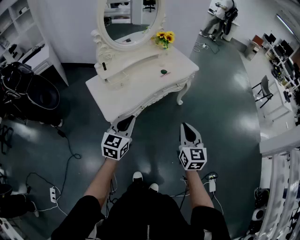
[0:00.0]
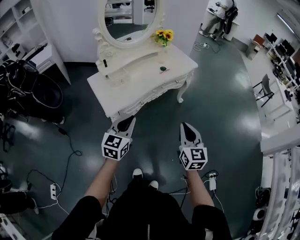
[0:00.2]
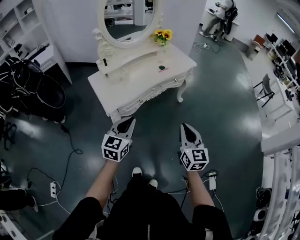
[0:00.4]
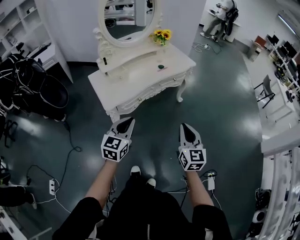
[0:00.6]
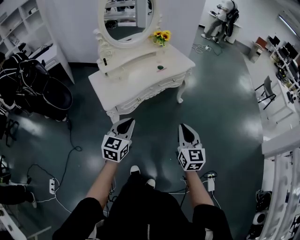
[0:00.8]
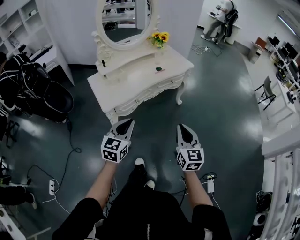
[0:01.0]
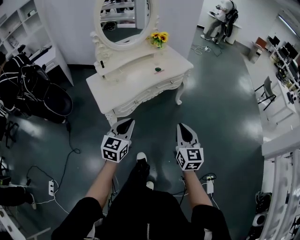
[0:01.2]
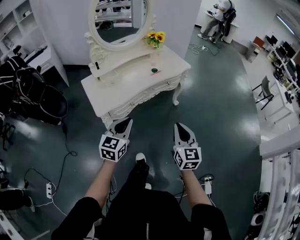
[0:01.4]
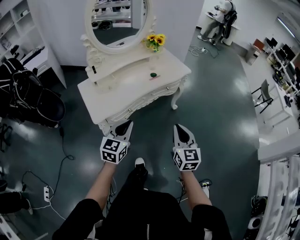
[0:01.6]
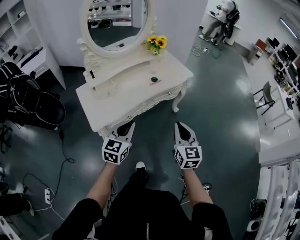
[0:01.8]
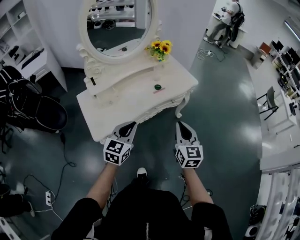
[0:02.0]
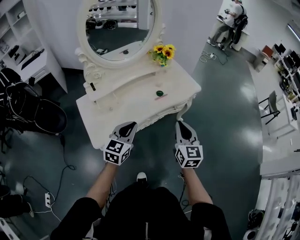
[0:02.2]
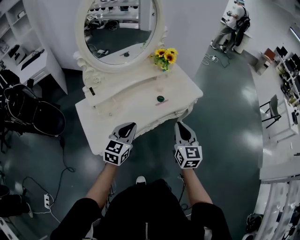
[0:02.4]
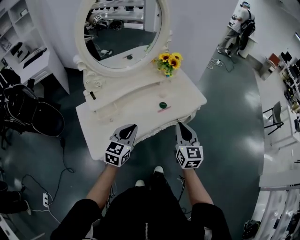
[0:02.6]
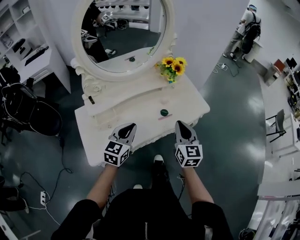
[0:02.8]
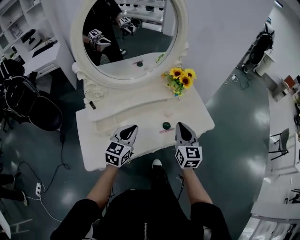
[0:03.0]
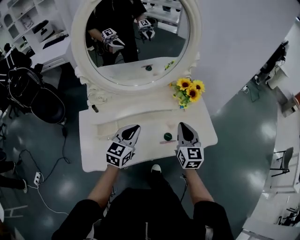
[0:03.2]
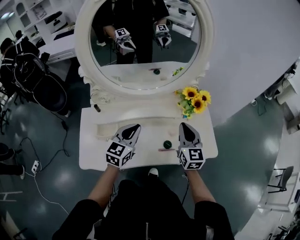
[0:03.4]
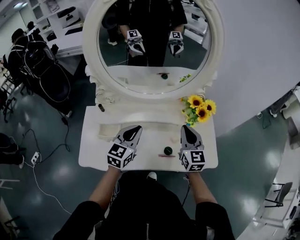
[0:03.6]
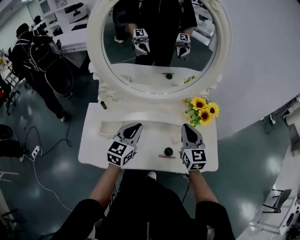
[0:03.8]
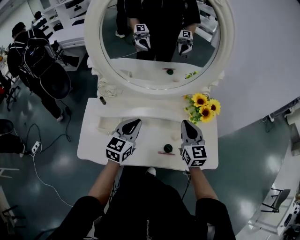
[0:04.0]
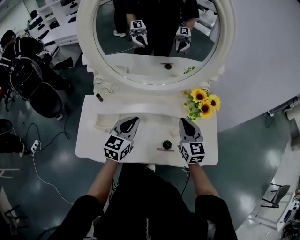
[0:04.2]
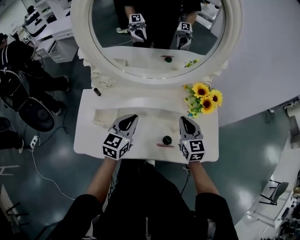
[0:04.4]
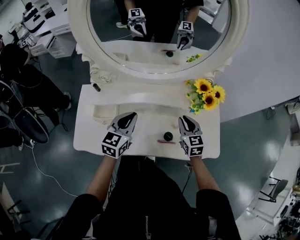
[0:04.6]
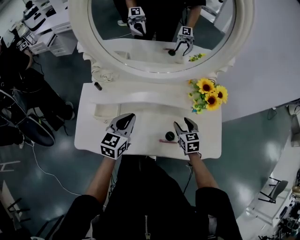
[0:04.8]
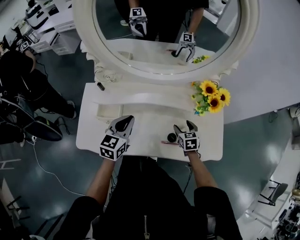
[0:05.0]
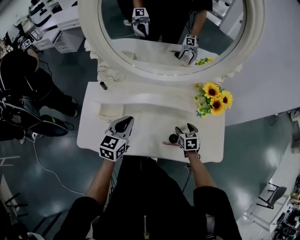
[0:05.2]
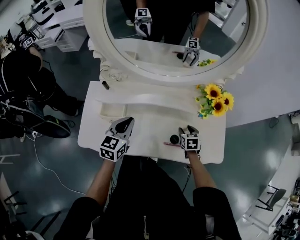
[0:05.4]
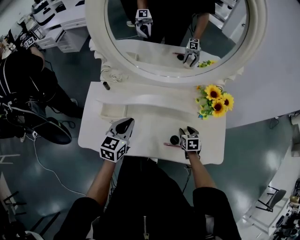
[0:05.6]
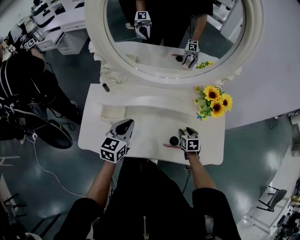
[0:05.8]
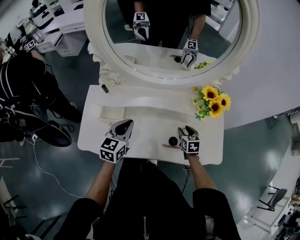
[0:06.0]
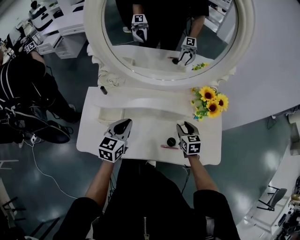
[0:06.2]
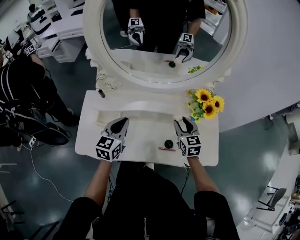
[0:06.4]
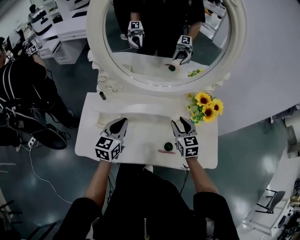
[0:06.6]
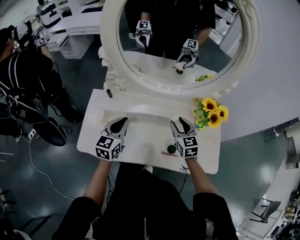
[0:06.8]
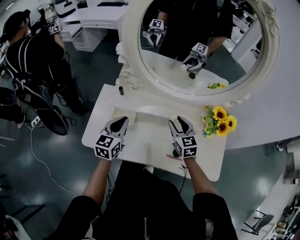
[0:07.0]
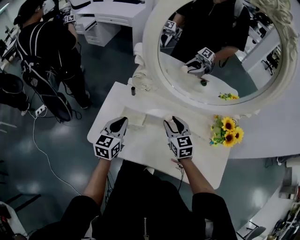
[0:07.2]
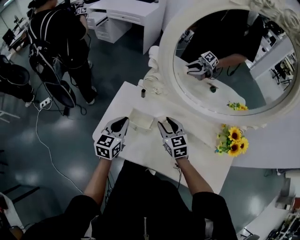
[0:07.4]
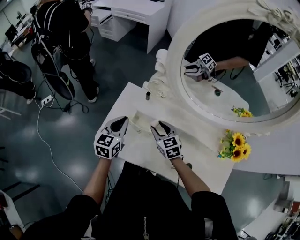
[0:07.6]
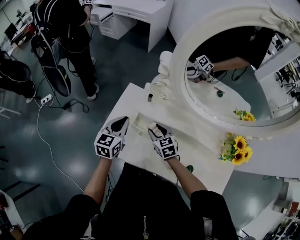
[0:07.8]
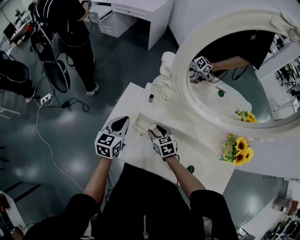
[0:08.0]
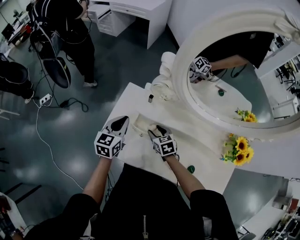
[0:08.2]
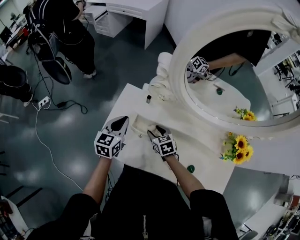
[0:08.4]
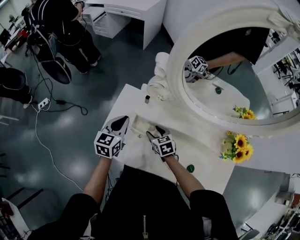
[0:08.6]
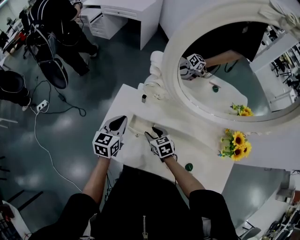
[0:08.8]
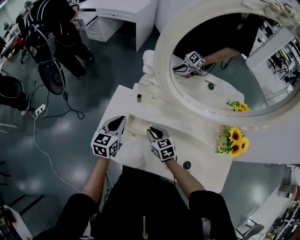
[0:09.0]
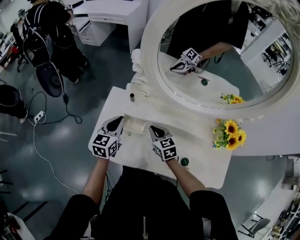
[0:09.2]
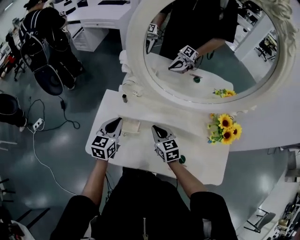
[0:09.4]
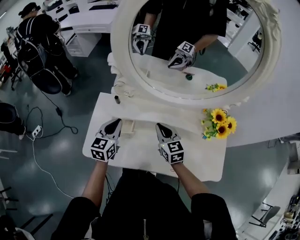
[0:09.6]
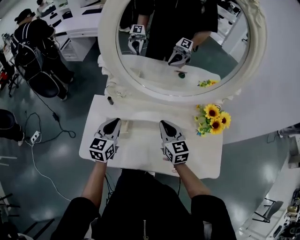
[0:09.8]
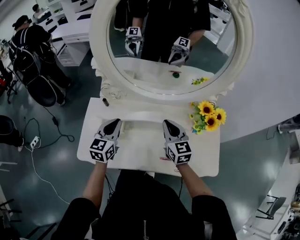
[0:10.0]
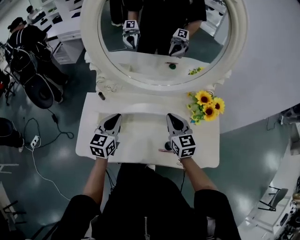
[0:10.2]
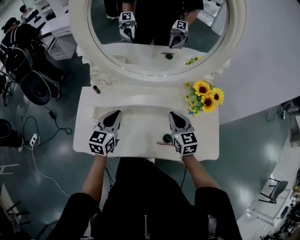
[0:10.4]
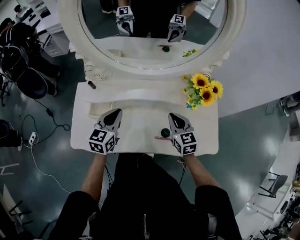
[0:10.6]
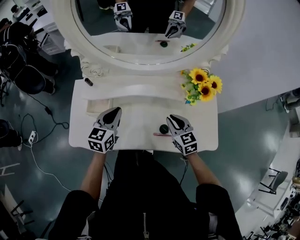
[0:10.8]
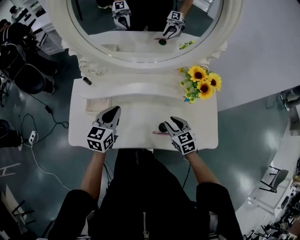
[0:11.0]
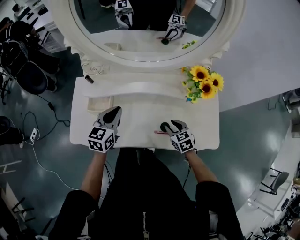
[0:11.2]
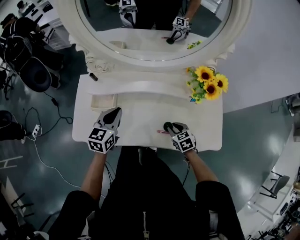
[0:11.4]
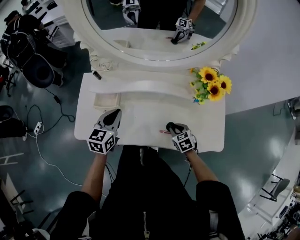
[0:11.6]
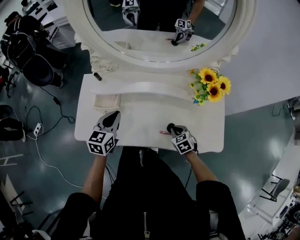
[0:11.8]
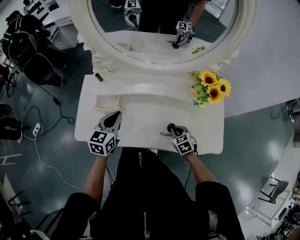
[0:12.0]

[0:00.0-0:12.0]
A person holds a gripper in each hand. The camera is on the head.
0:00.0 to 0:01.6: Both grippers travel together to the right, some 10 cm. The right gripper goes backward and returns, approximately 10 cm each way. The left gripper goes backward and returns, about 10 cm each way.
0:01.6 to 0:03.0: Both grippers are carried forward, about 40 cm.
0:03.0 to 0:04.4: The right gripper shifts by approximately 20 cm, and changes its angle by approximately 30 degrees. Meanwhile the left gripper moves some 10 cm, and swivels about 20 degrees.
0:04.4 to 0:06.0: The left gripper travels to the left by approximately 5 cm; the right gripper travels downward by approximately 20 cm, turns by some 30 degrees, and opens.
0:06.0 to 0:07.6: The right gripper ends up some 40 cm from where it was, and swivels some 40 degrees. The left gripper ends up approximately 20 cm from where it was, and changes its angle by roughly 20 degrees.
0:07.6 to 0:09.0: The right gripper closes its fingers.
0:09.0 to 0:10.4: The right gripper shifts roughly 30 cm to the right, and swivels approximately 30 degrees; the left gripper travels to the right by about 20 cm.
0:10.4 to 0:12.0: The left gripper ends up roughly 5 cm from where it was. Meanwhile the right gripper heads downward and backward, covering about 20 cm, points its fingers roughly 30 degrees further downward, and opens, then closes once more.

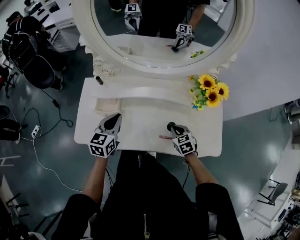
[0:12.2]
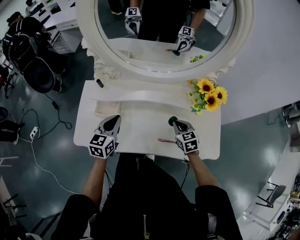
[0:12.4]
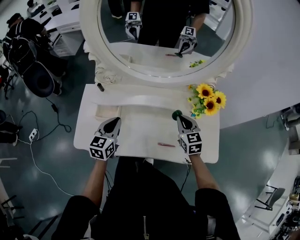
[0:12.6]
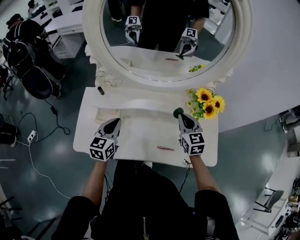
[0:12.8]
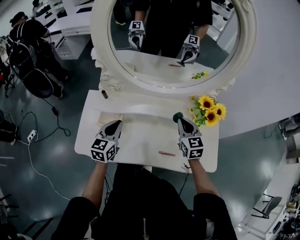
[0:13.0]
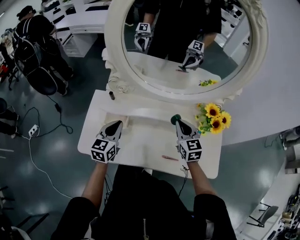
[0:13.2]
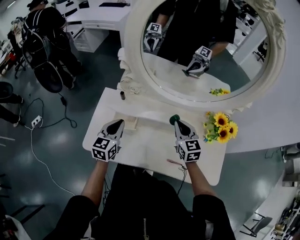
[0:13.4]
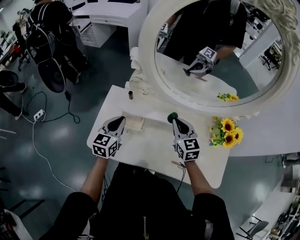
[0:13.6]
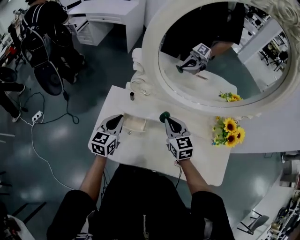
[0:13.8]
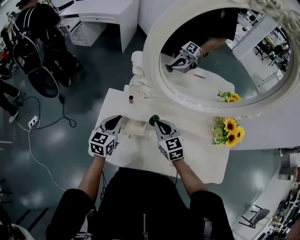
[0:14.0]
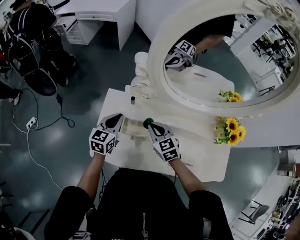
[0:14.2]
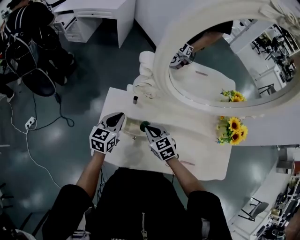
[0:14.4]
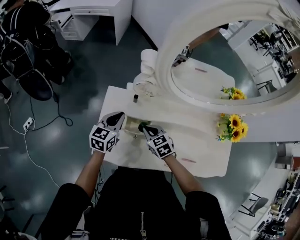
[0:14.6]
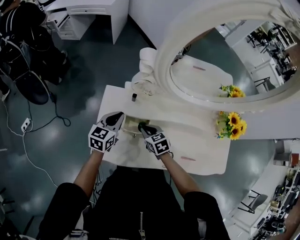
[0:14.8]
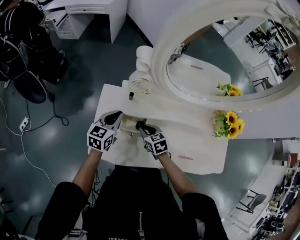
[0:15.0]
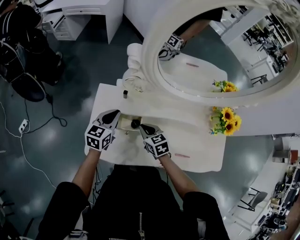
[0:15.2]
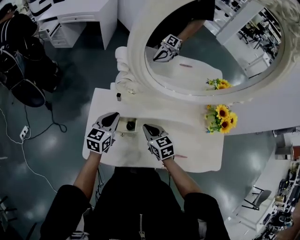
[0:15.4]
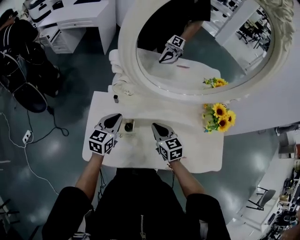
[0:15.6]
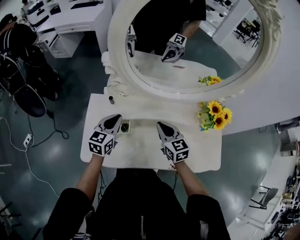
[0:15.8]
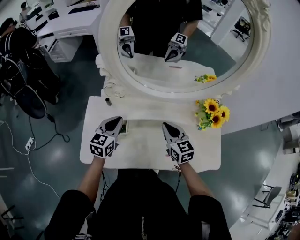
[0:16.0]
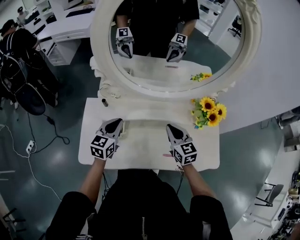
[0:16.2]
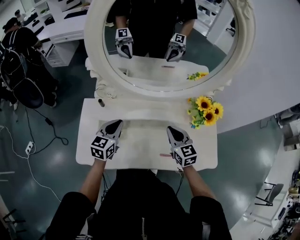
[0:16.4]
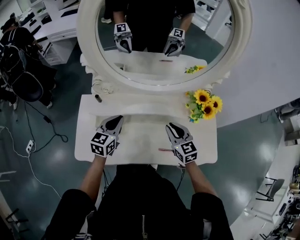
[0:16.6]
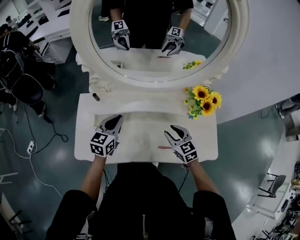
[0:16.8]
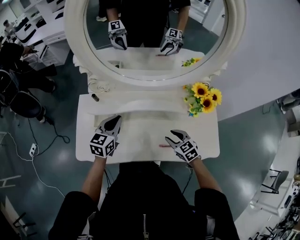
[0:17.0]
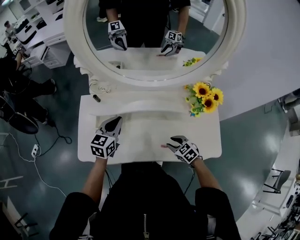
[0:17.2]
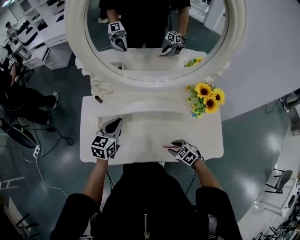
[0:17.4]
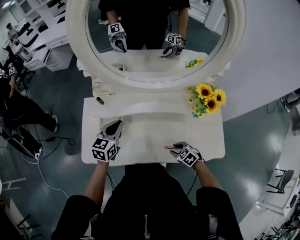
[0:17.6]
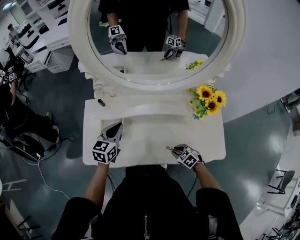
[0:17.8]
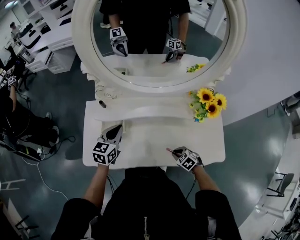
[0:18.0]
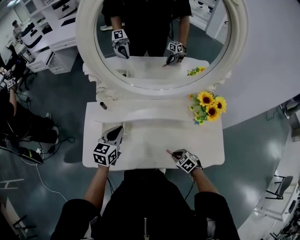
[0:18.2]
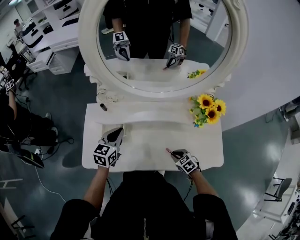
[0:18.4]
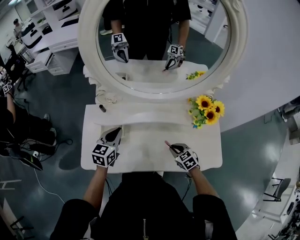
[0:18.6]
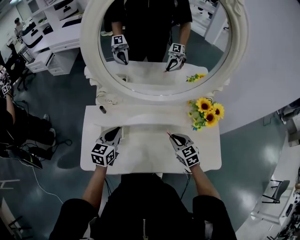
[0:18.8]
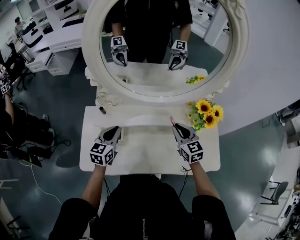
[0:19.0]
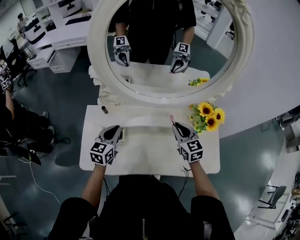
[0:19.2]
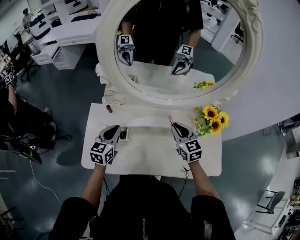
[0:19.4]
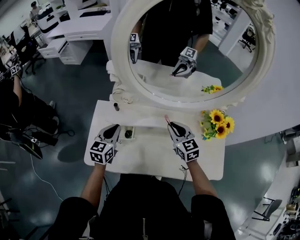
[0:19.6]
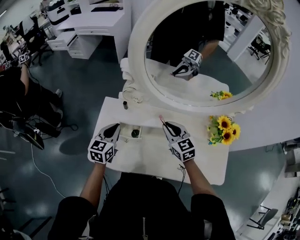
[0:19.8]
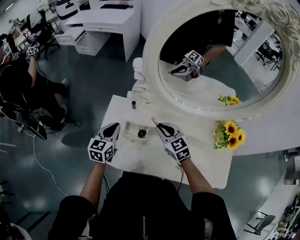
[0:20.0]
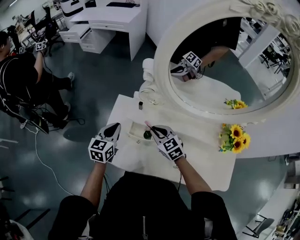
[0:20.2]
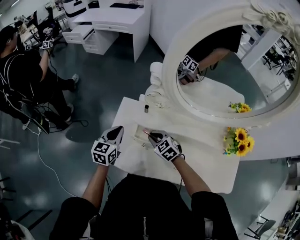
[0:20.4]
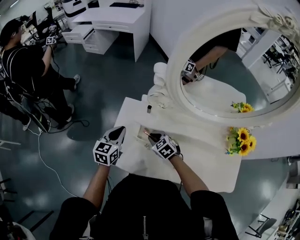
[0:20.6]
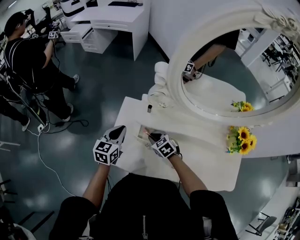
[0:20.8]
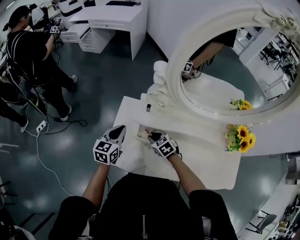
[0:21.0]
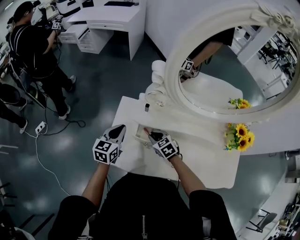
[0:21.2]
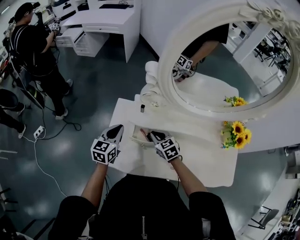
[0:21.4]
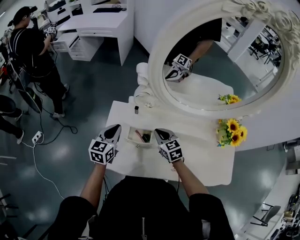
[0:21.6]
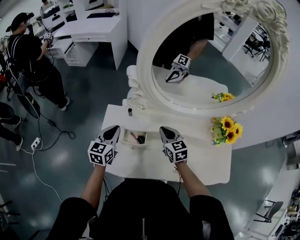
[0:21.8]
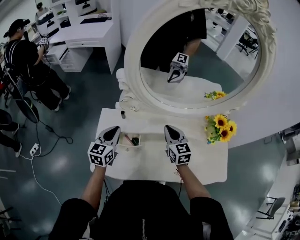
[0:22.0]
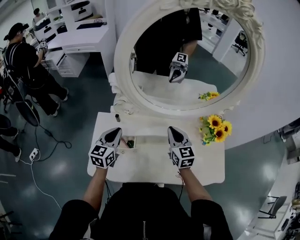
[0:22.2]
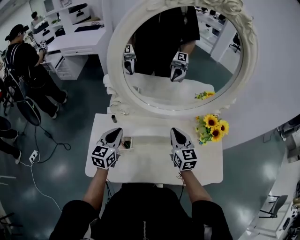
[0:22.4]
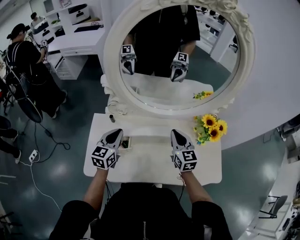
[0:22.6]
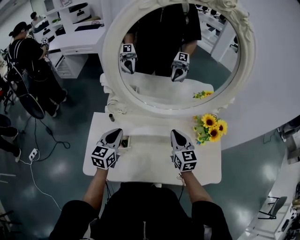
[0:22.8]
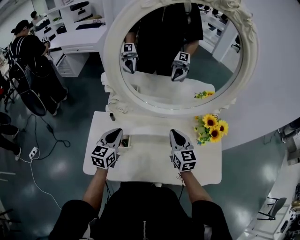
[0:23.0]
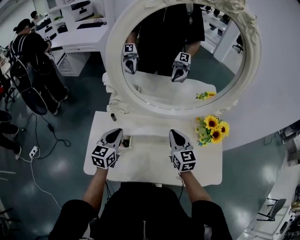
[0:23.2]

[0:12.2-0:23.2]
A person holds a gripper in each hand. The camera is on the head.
0:12.2 to 0:13.8: The left gripper moves to the left and forward, roughly 15 cm. The right gripper goes approximately 30 cm to the left, upward and forward, and rotates about 30 degrees.
0:13.8 to 0:15.4: The right gripper goes roughly 10 cm downward and to the left.
0:15.4 to 0:17.0: The right gripper shifts some 25 cm to the right and backward, and opens, while the left gripper is displaced to the right by roughly 15 cm.
0:17.0 to 0:18.4: The right gripper heads downward, covering approximately 10 cm, and closes up.
0:18.4 to 0:20.0: The right gripper travels to the left, upward and forward by approximately 35 cm, and rotates approximately 30 degrees, while the left gripper goes about 15 cm to the left.
0:20.0 to 0:21.6: The right gripper goes approximately 5 cm downward.
0:21.6 to 0:23.2: The right gripper travels to the right and upward by approximately 25 cm, and swivels some 30 degrees. The left gripper shifts roughly 15 cm to the right.
